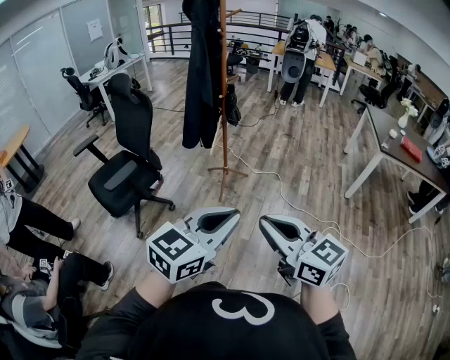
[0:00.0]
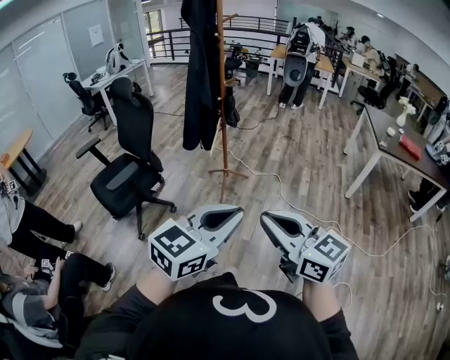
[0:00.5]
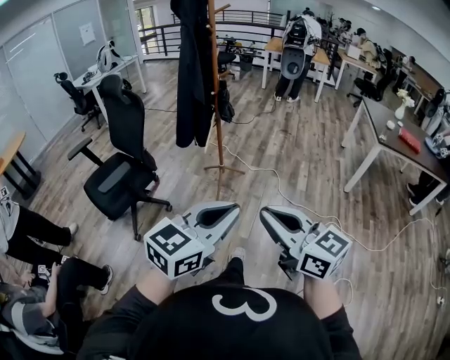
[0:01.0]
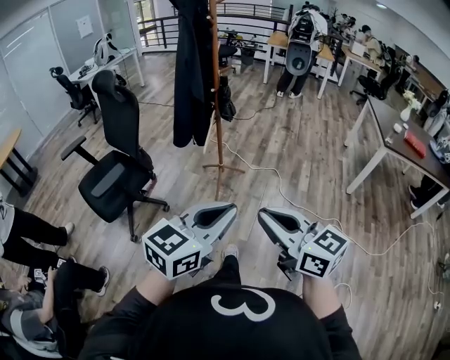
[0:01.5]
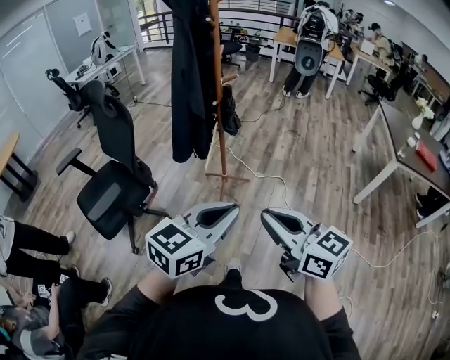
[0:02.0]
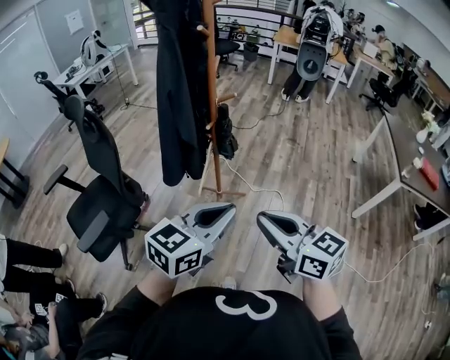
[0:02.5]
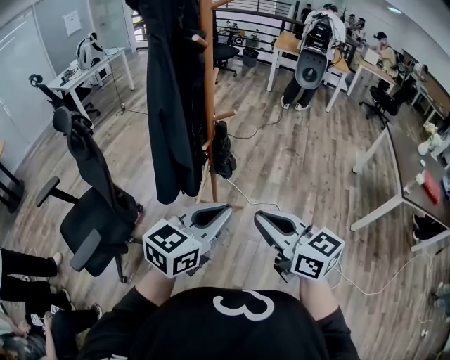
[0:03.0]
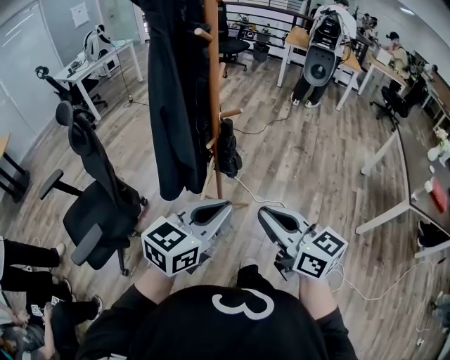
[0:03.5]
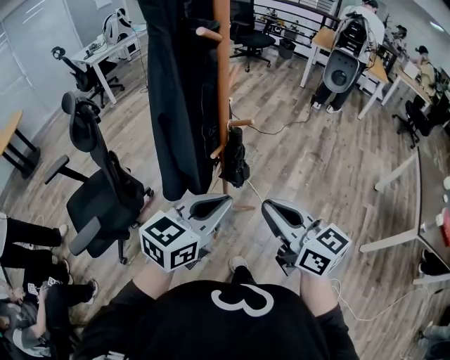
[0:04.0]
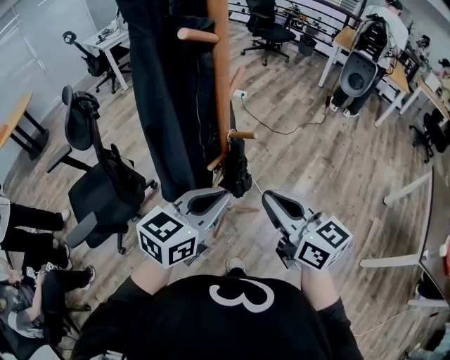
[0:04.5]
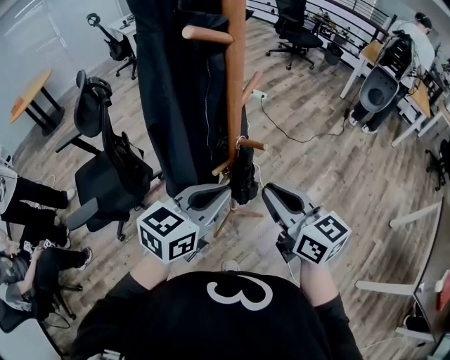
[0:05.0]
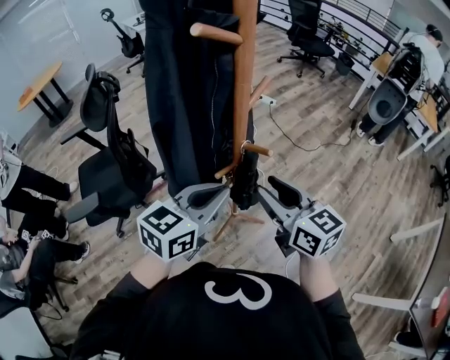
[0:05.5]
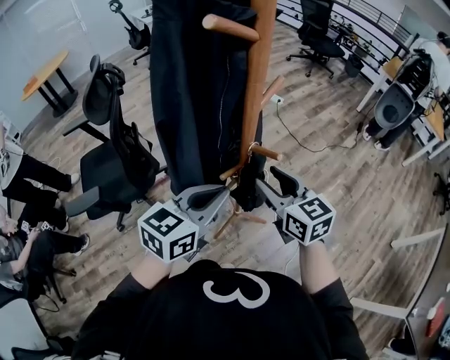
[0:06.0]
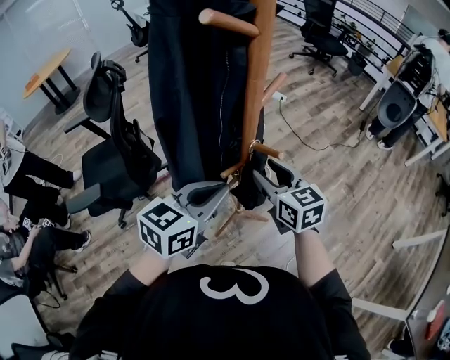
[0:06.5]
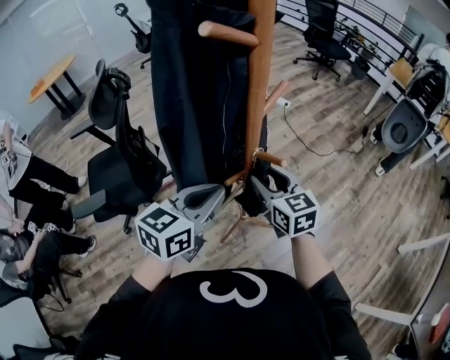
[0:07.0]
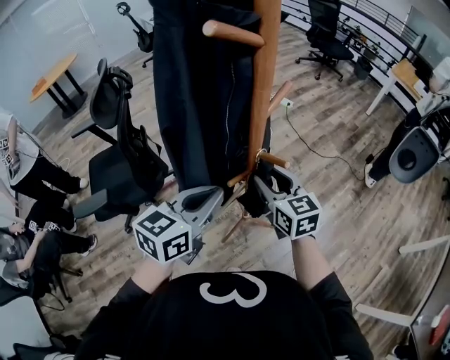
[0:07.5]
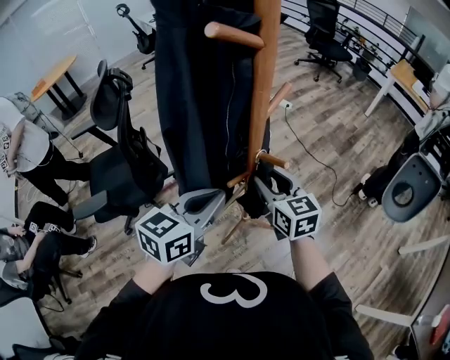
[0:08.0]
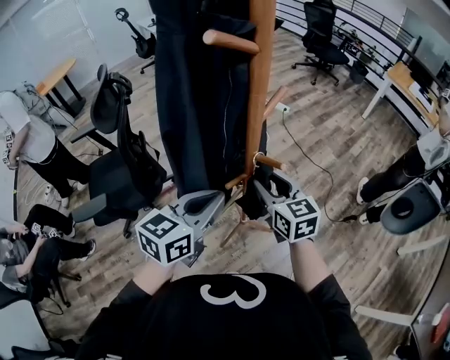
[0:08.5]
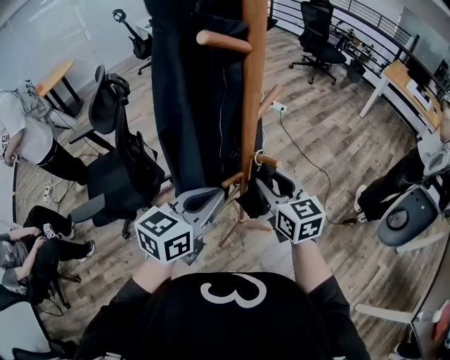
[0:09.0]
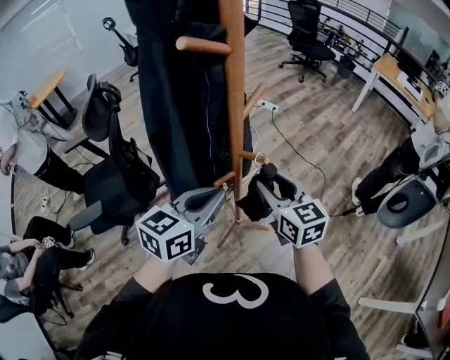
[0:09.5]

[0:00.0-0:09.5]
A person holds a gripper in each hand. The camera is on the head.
0:00.0 to 0:02.0: Both grippers move forward, about 25 cm.
0:02.0 to 0:04.0: The grippers both shift forward by approximately 40 cm.
0:04.0 to 0:05.5: The two grippers go roughly 15 cm forward. The right gripper opens.
0:05.5 to 0:07.5: The right gripper is displaced forward and downward by some 10 cm; the left gripper shifts by about 5 cm.
0:07.5 to 0:09.5: The right gripper moves some 5 cm.

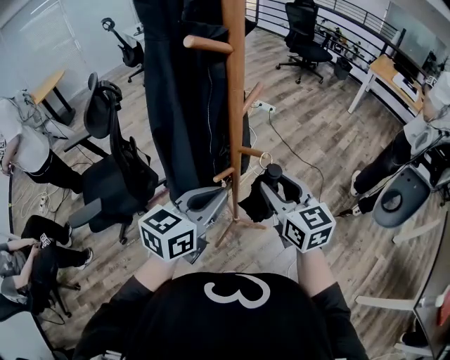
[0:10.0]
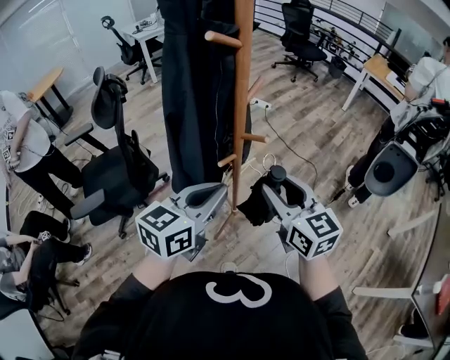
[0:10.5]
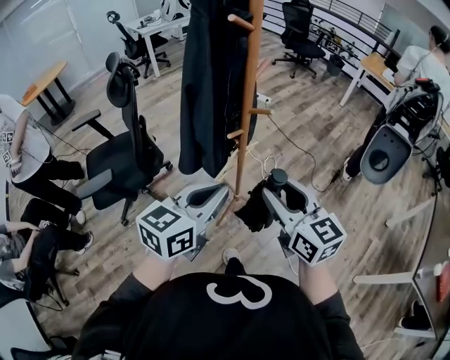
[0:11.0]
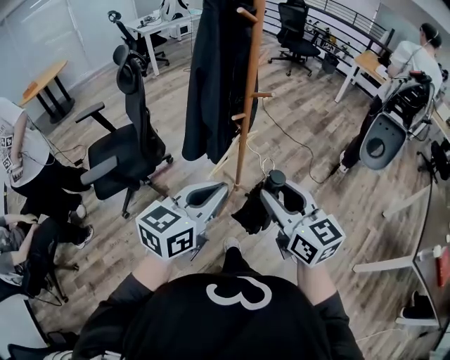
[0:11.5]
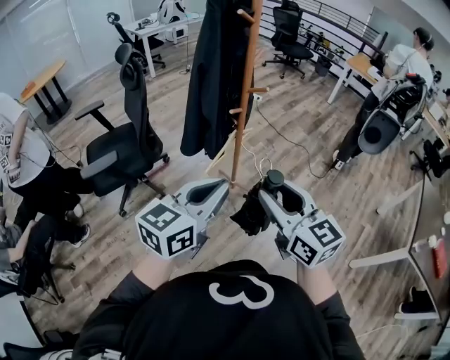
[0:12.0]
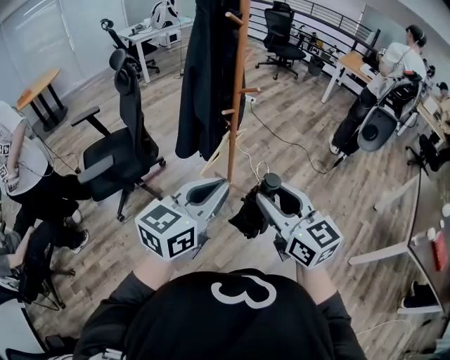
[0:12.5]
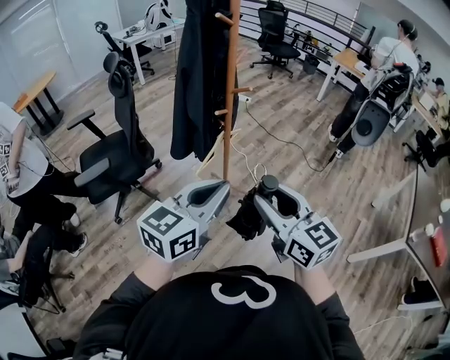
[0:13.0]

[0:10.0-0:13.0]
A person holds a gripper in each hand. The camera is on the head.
0:10.0 to 0:11.5: The two grippers go about 25 cm backward.
0:11.5 to 0:13.0: The grippers both shift backward by about 5 cm.

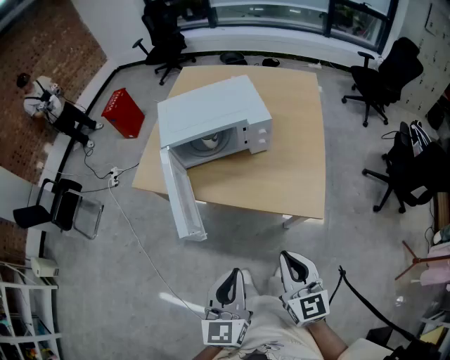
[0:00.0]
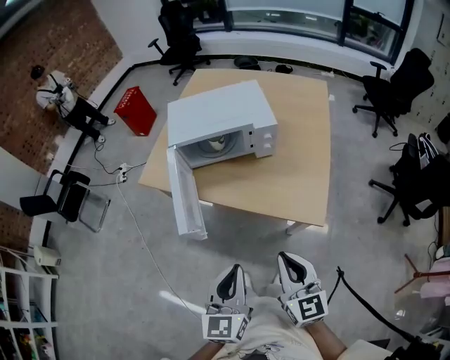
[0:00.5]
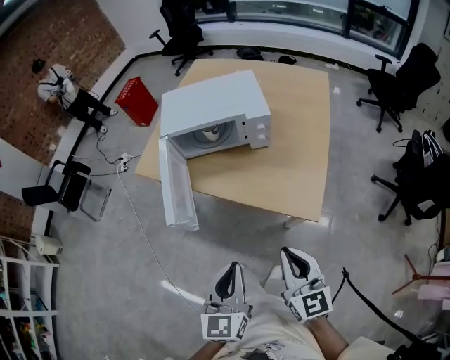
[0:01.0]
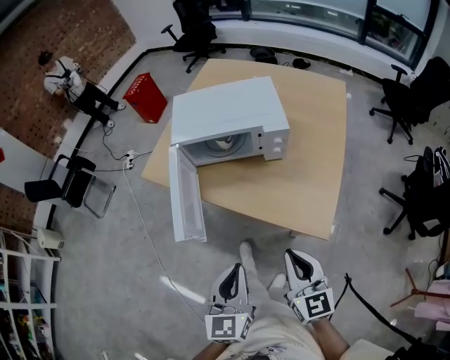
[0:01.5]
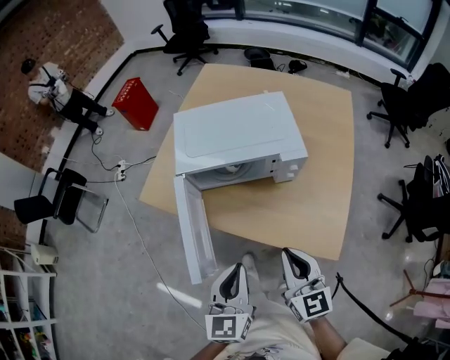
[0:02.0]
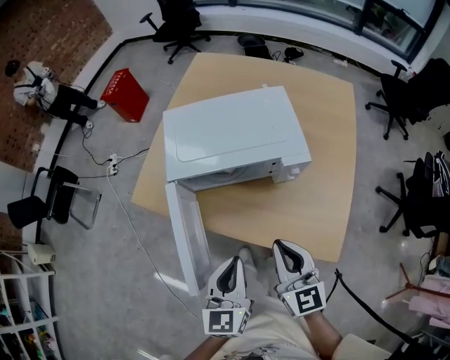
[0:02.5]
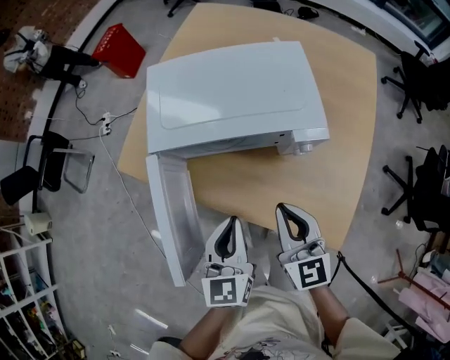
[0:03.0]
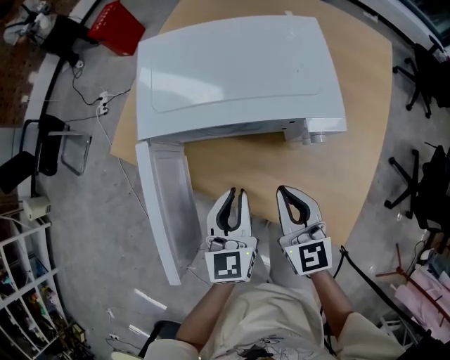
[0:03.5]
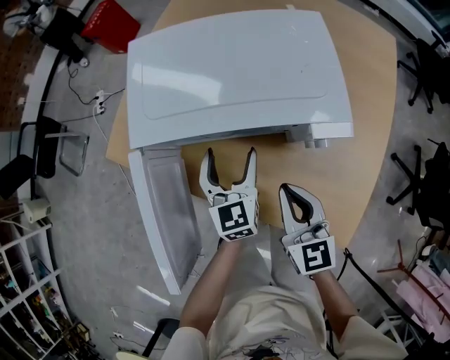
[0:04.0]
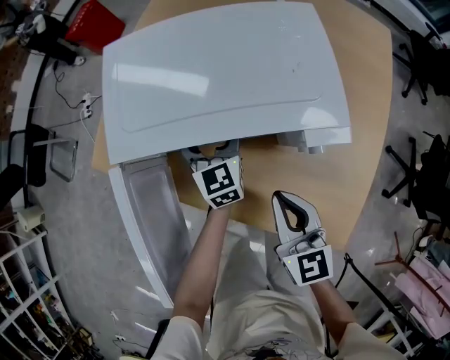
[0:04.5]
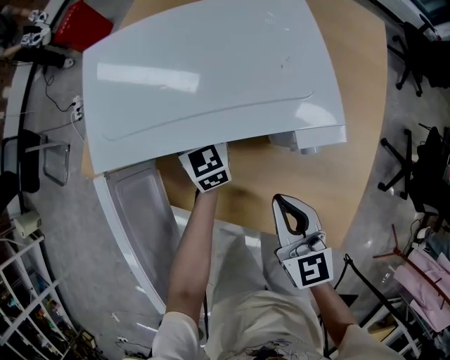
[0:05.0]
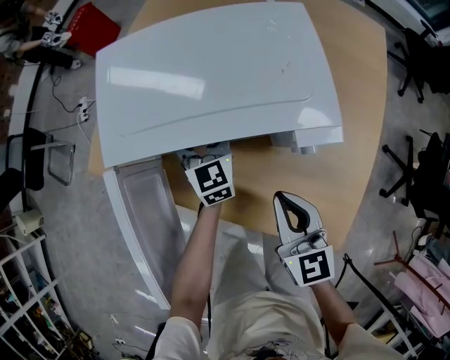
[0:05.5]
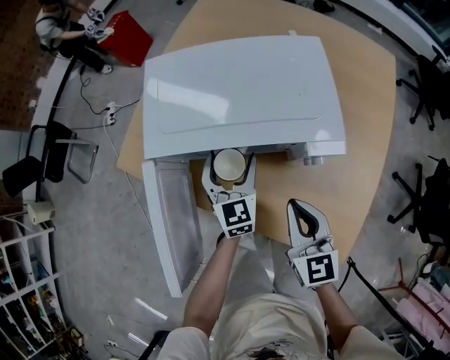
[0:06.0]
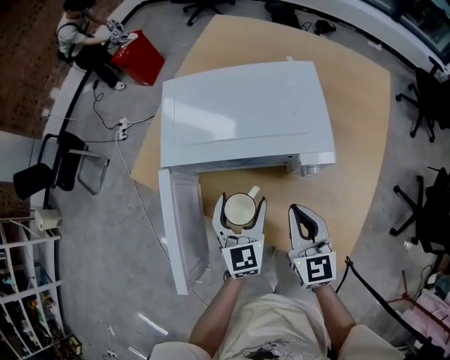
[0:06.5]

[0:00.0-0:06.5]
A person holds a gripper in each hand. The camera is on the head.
0:00.0 to 0:02.0: The grippers both shift forward by roughly 20 cm.
0:02.0 to 0:04.5: The left gripper heads forward and downward, covering some 40 cm, and opens up, while the right gripper is displaced forward and downward by approximately 25 cm.
0:04.5 to 0:06.5: The left gripper goes about 20 cm backward and upward; the right gripper changes place by about 5 cm.

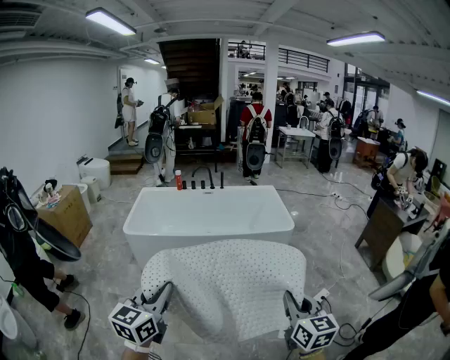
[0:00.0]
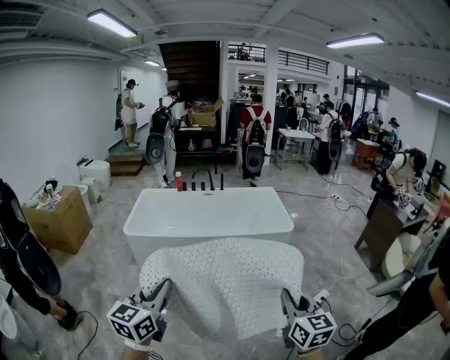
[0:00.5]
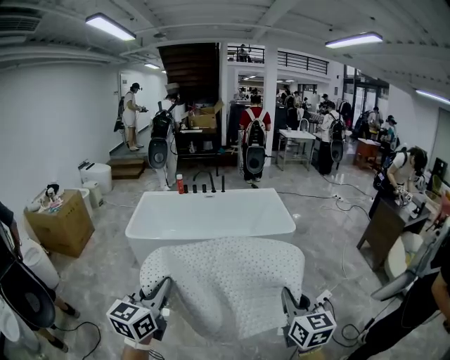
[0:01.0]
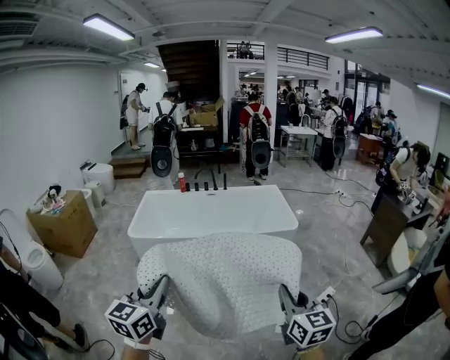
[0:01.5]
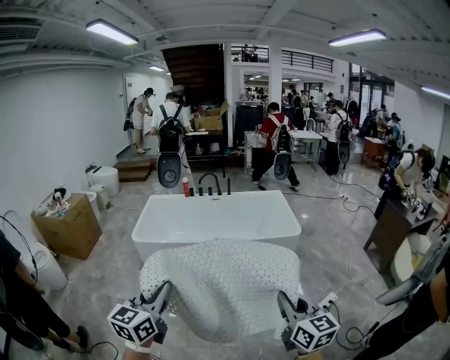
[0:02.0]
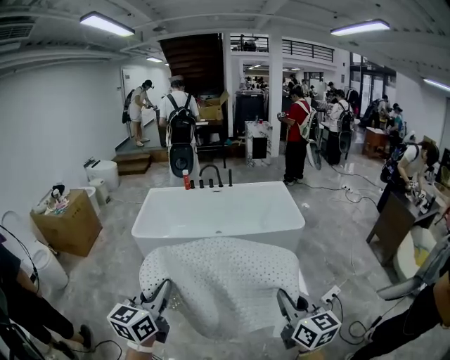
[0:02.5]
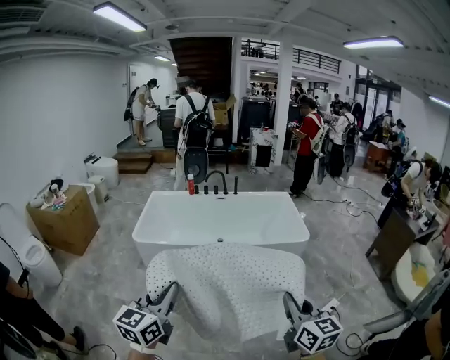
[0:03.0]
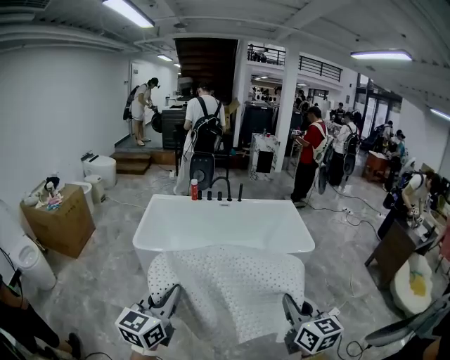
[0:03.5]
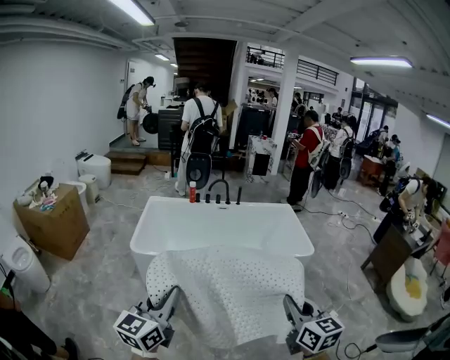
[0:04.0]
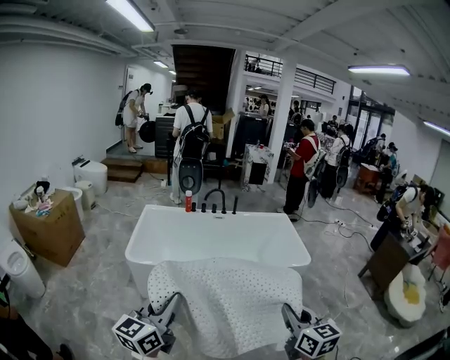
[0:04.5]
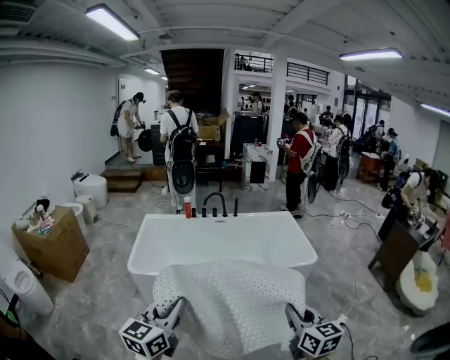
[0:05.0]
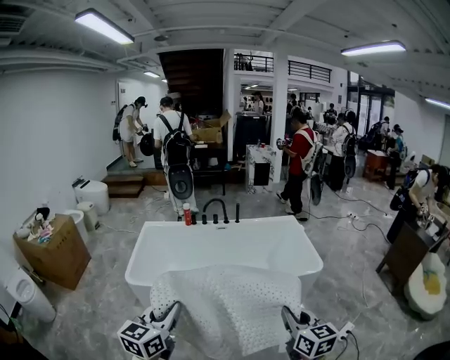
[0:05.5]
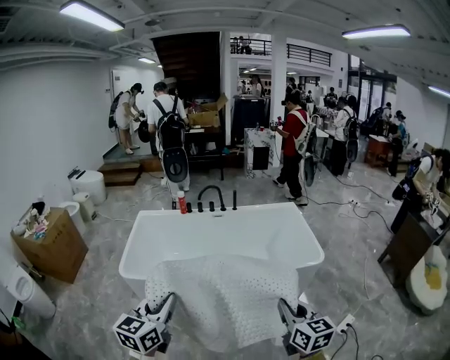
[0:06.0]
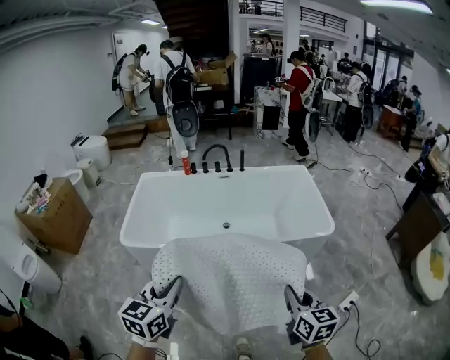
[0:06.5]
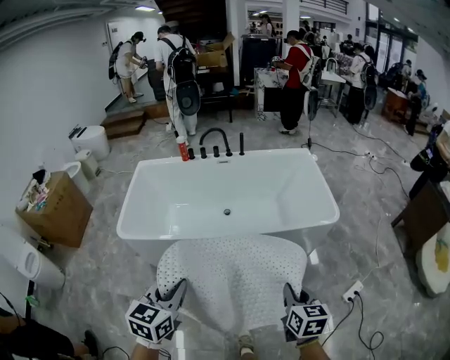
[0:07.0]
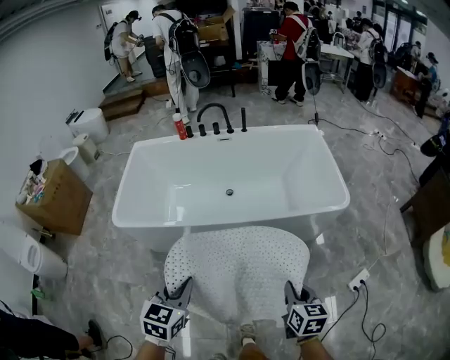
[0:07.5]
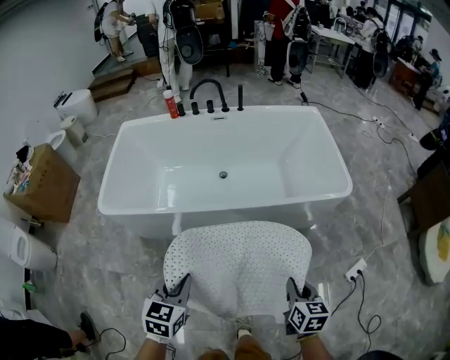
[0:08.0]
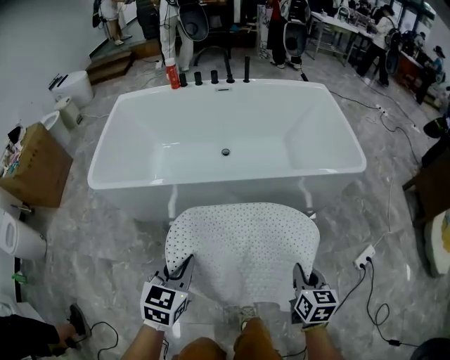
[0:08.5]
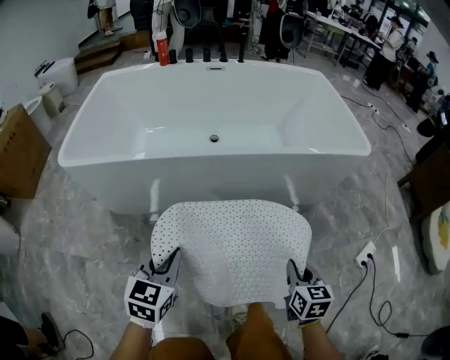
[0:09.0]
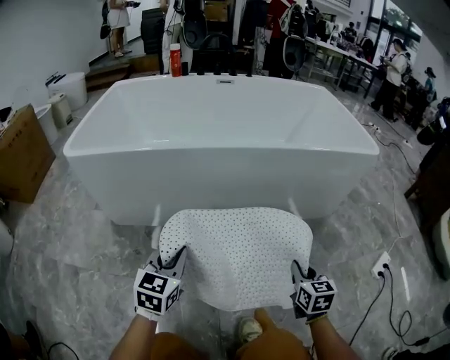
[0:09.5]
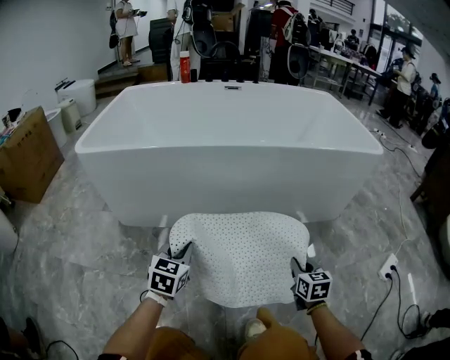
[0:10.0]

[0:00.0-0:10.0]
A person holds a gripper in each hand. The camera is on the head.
0:00.0 to 0:02.0: The grippers stay close to where they were, moving slightly.
0:02.0 to 0:04.0: Both grippers travel together to the left and forward, about 25 cm.
0:04.0 to 0:06.0: Both grippers travel together forward, approximately 20 cm.
0:06.0 to 0:08.0: Both grippers move downward, about 30 cm. The right gripper rotates approximately 30 degrees, while the left gripper rotates approximately 30 degrees.
0:08.0 to 0:10.0: The two grippers go roughly 50 cm downward.
